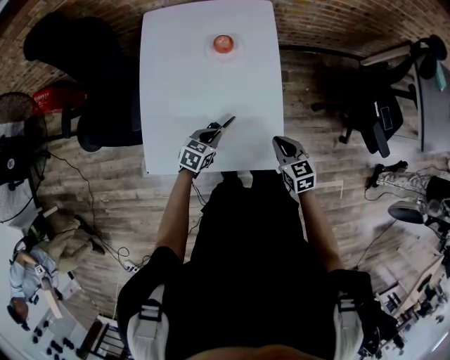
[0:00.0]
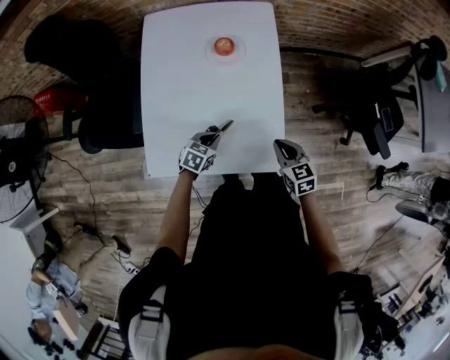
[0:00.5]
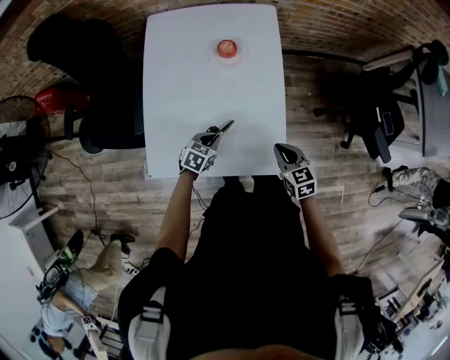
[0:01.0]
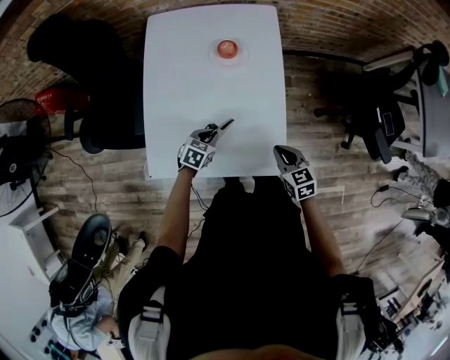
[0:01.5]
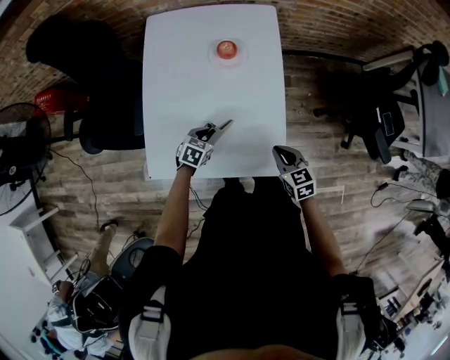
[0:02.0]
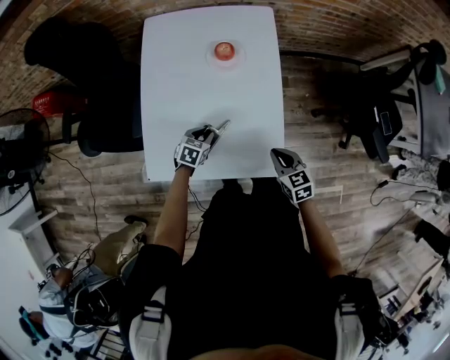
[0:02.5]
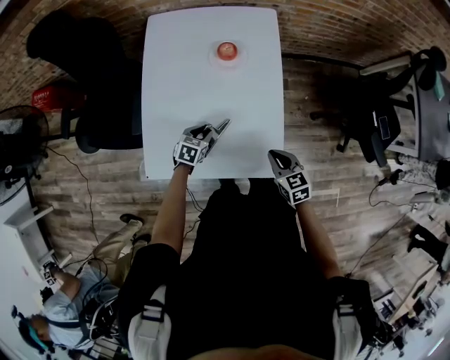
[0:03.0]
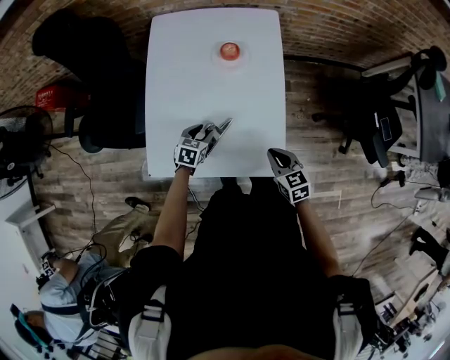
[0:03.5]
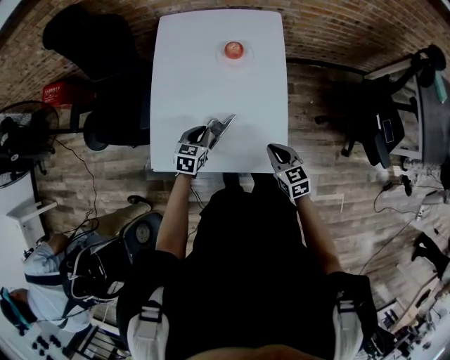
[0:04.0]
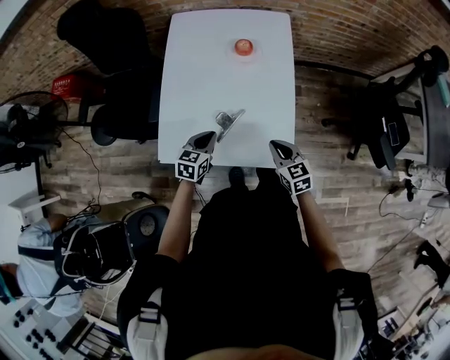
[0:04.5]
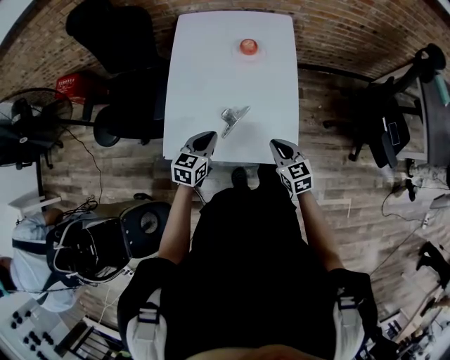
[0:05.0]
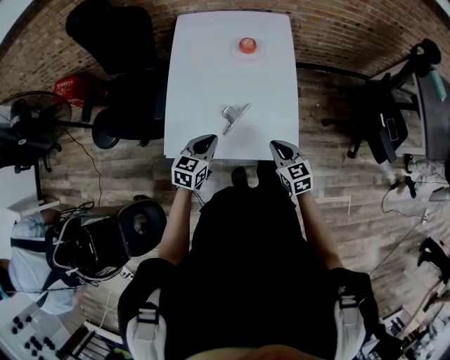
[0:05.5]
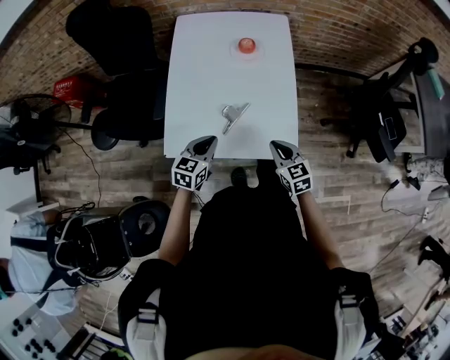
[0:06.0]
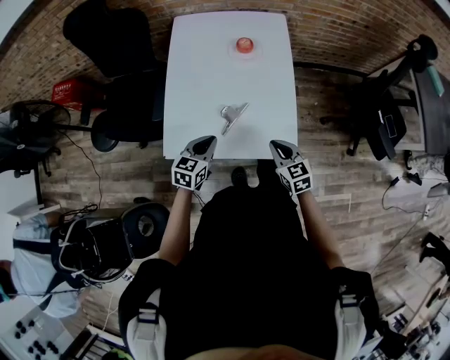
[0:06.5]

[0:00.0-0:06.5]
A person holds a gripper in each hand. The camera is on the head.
0:00.0 to 0:02.0: The left gripper moves roughly 5 cm.
0:02.0 to 0:04.5: The left gripper is displaced upward and backward by about 10 cm, swivels roughly 20 degrees, and opens, then closes again, while the right gripper ends up about 5 cm from where it was.
0:04.5 to 0:06.5: Both grippers move backward, about 5 cm.

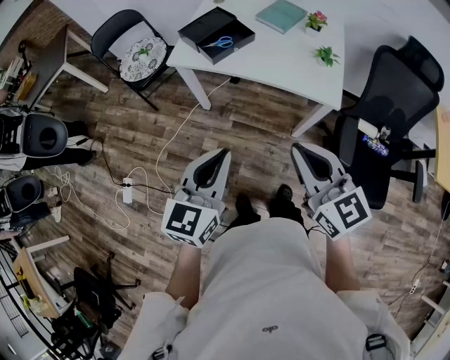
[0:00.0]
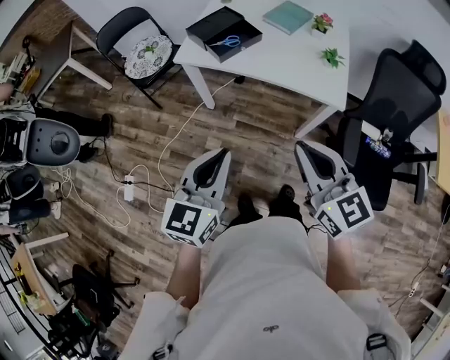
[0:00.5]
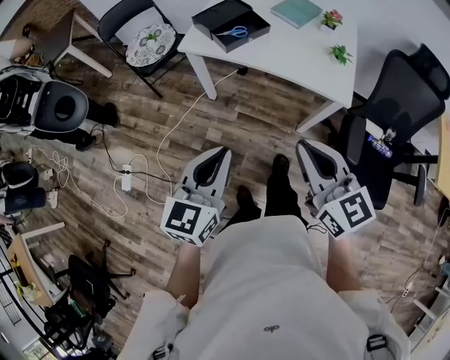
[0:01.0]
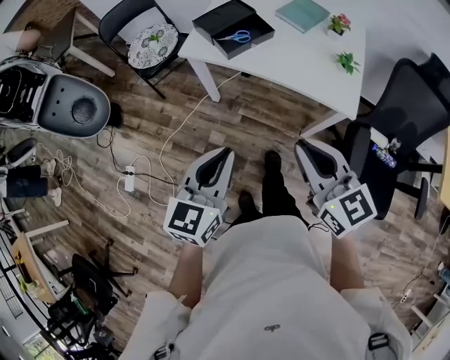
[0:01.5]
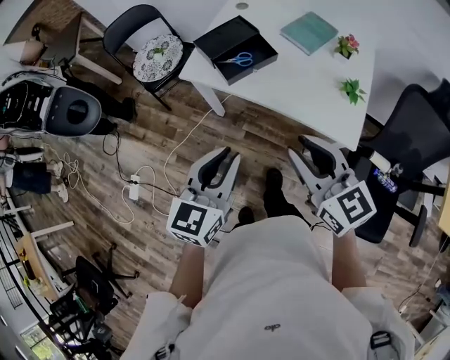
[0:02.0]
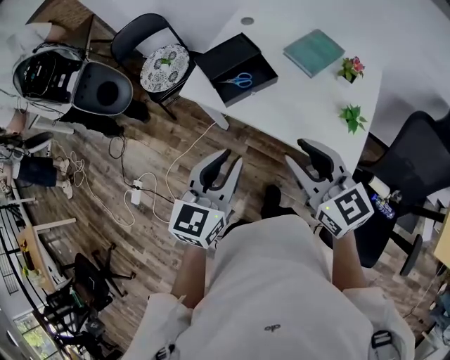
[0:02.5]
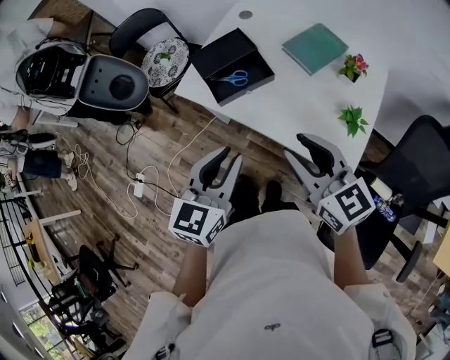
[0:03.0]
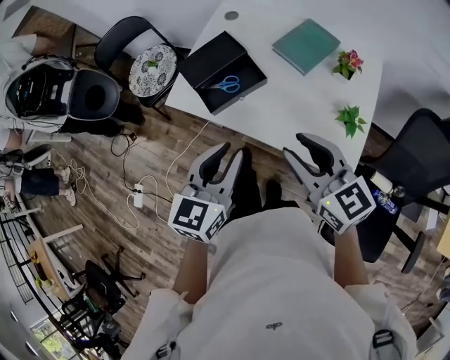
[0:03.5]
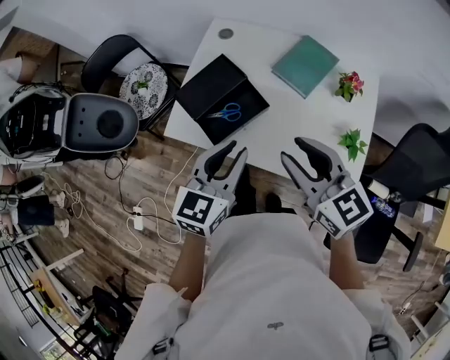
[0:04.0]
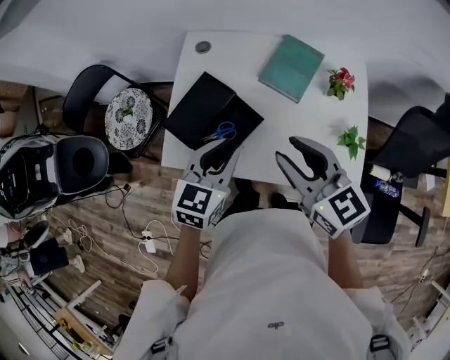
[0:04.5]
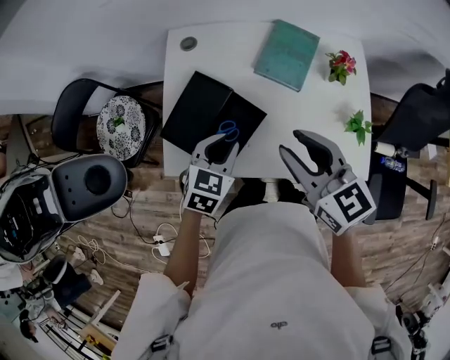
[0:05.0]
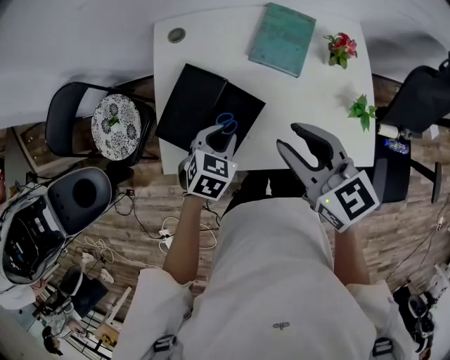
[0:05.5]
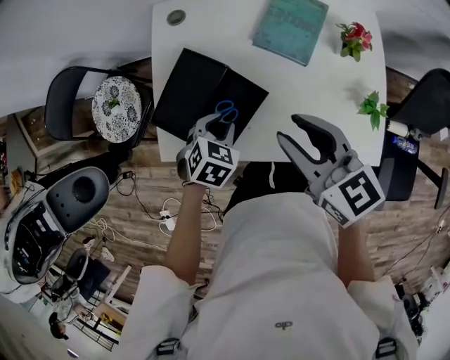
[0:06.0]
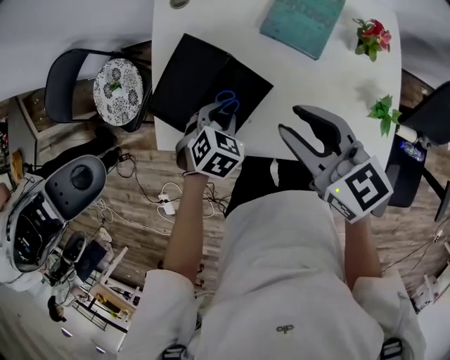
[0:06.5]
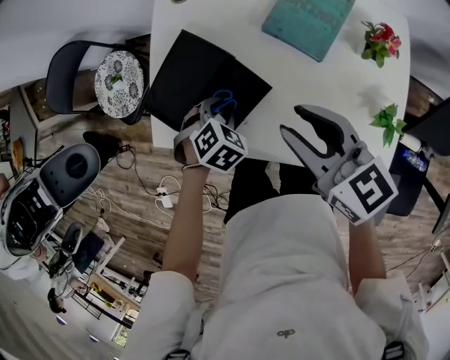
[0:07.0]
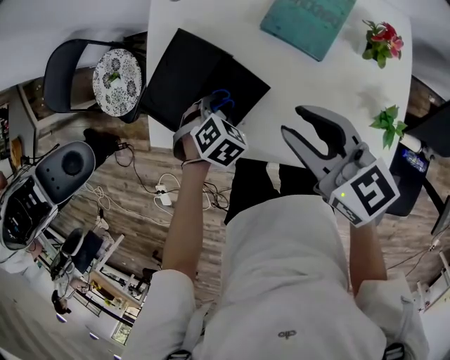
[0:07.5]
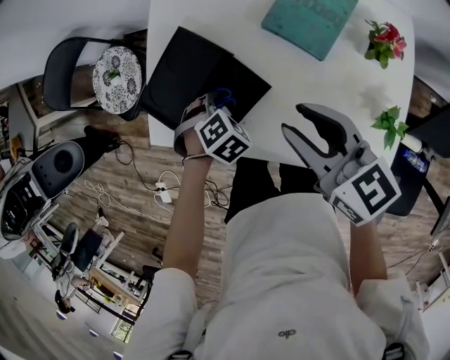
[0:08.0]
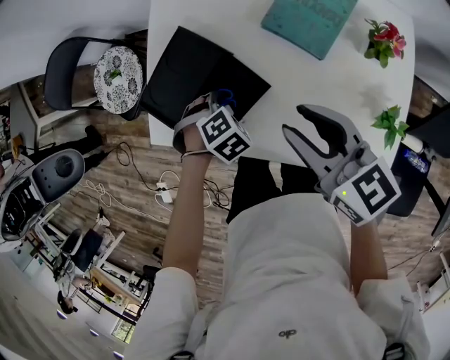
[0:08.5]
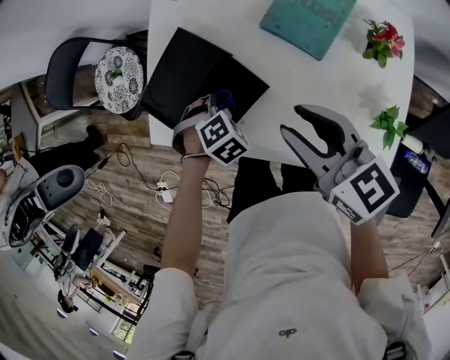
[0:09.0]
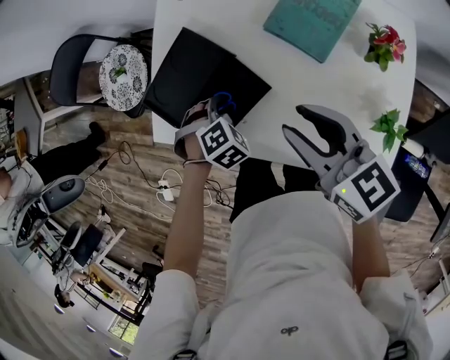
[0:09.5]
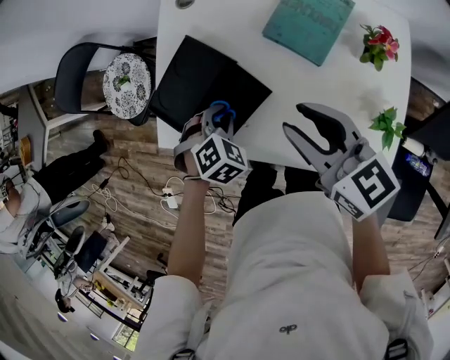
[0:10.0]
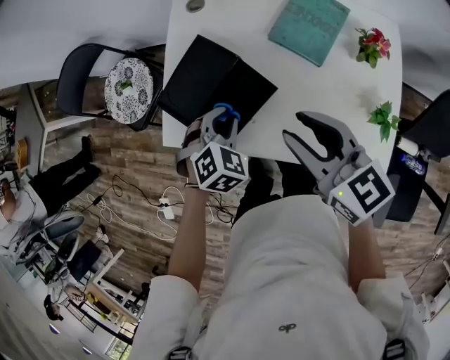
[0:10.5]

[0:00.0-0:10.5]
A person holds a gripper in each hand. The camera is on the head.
0:00.0 to 0:02.0: Both grippers move forward, roughly 15 cm. The right gripper opens its fingers.
0:02.0 to 0:04.0: The two grippers go about 25 cm forward.
0:04.0 to 0:06.5: The left gripper is displaced downward and forward by about 25 cm, and tilts its fingers about 50 degrees downward; the right gripper moves forward and downward, roughly 15 cm.
0:06.5 to 0:08.5: The left gripper moves about 5 cm.
0:08.5 to 0:10.5: The right gripper ends up roughly 5 cm from where it was; the left gripper travels upward by roughly 10 cm, and turns by roughly 20 degrees.

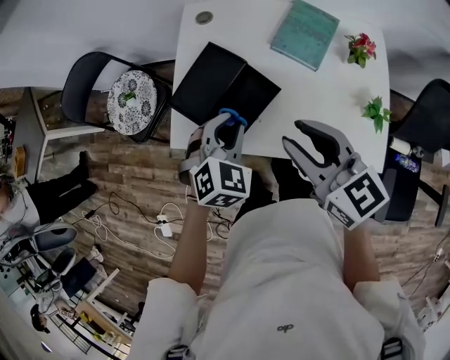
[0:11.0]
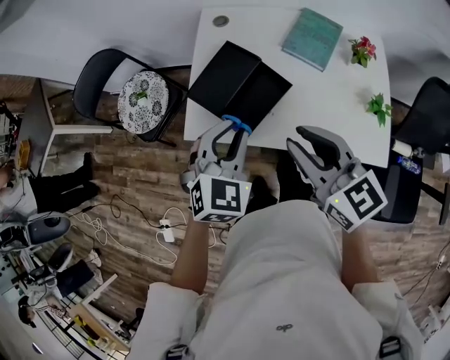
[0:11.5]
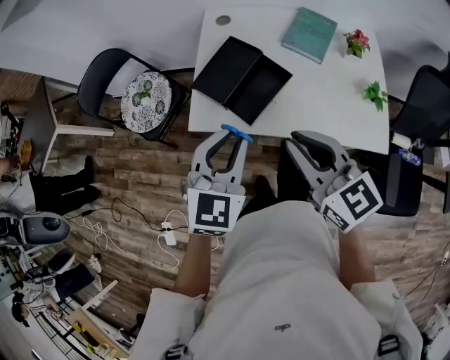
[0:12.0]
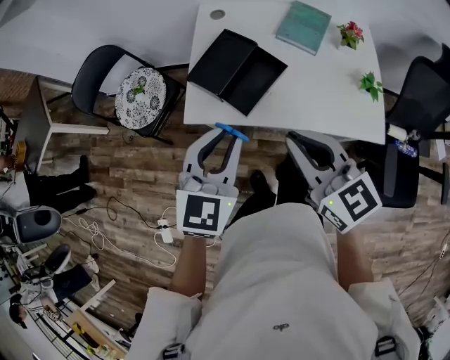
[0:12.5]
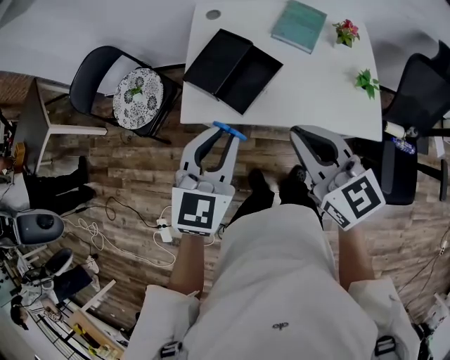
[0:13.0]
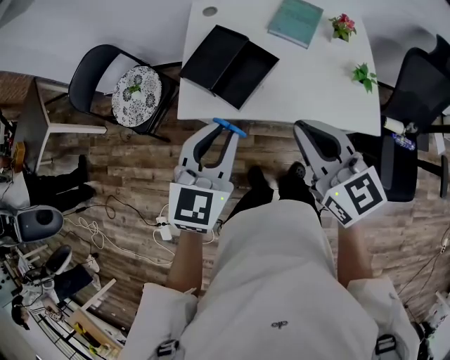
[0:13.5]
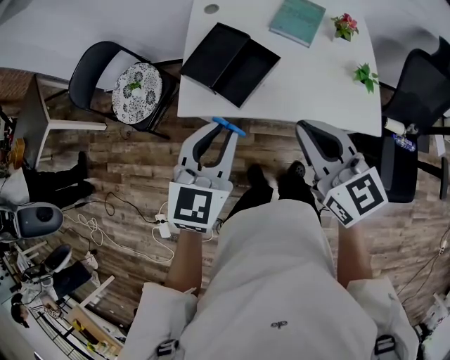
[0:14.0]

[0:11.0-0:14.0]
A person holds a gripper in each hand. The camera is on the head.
0:11.0 to 0:12.5: The right gripper travels backward and to the left by some 15 cm, and closes. Meanwhile the left gripper travels backward, upward and to the left by roughly 20 cm, and turns by approximately 30 degrees.
0:12.5 to 0:14.0: The grippers stay close to where they were, moving slightly.

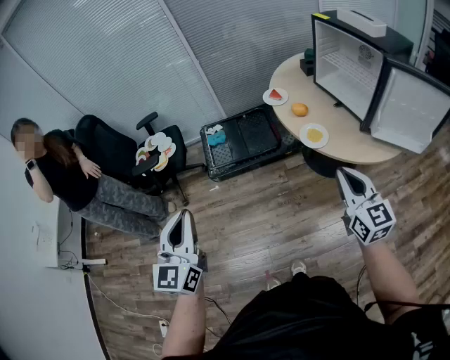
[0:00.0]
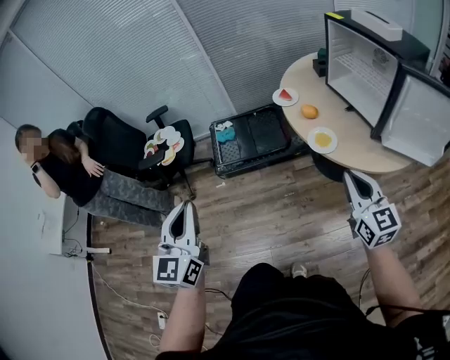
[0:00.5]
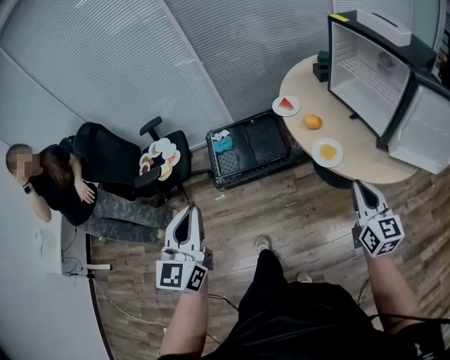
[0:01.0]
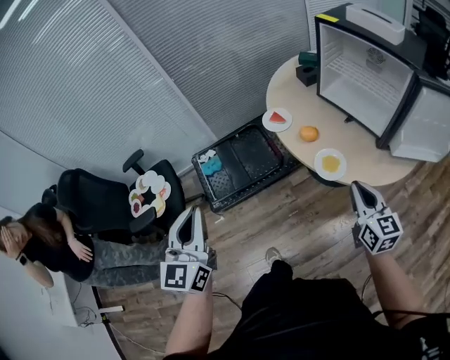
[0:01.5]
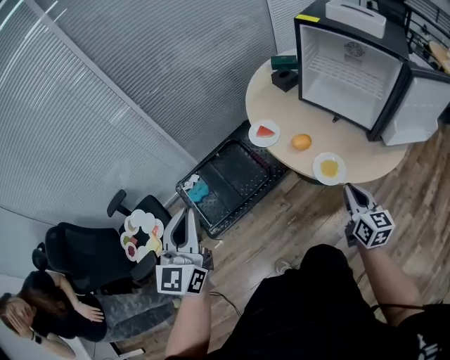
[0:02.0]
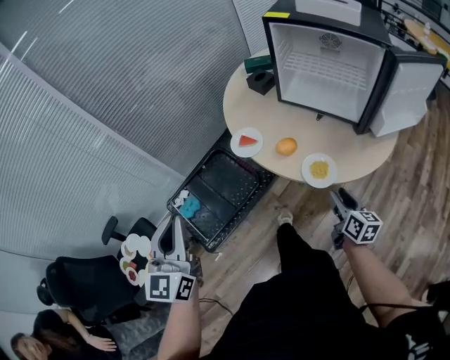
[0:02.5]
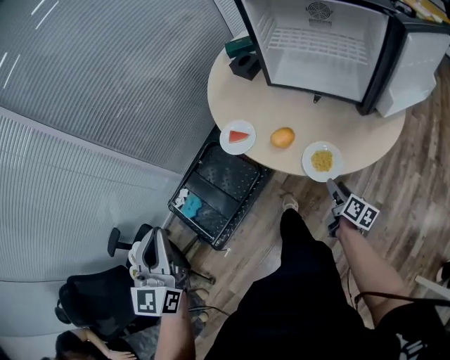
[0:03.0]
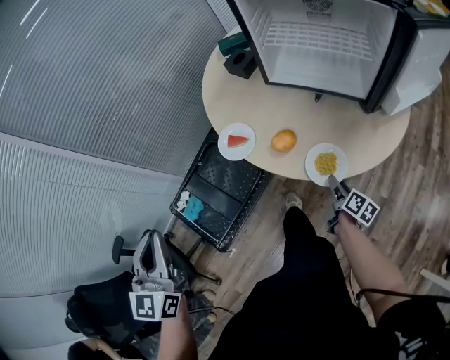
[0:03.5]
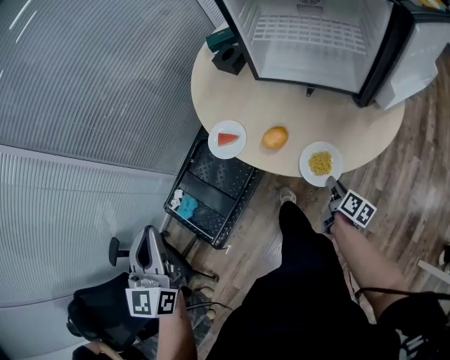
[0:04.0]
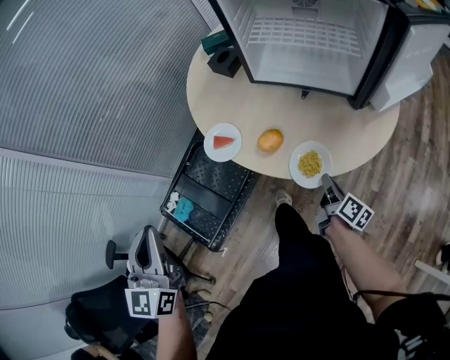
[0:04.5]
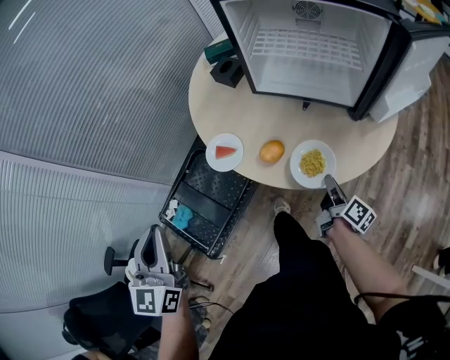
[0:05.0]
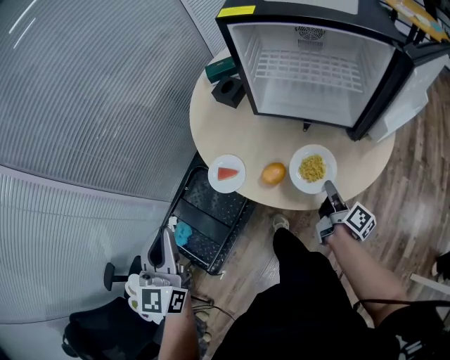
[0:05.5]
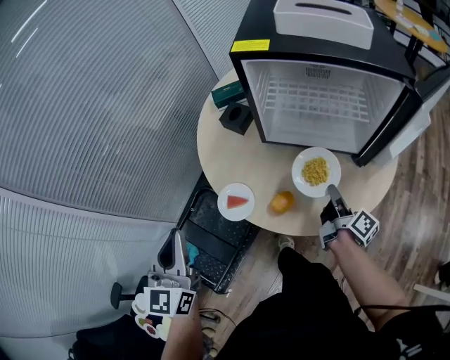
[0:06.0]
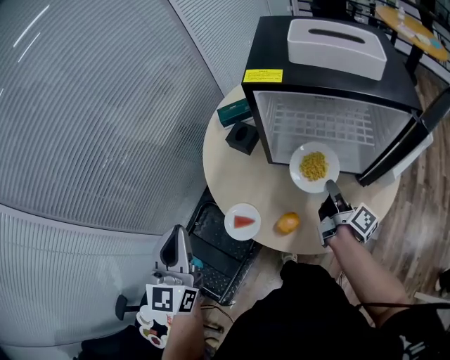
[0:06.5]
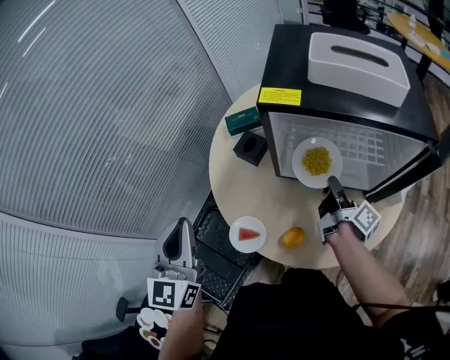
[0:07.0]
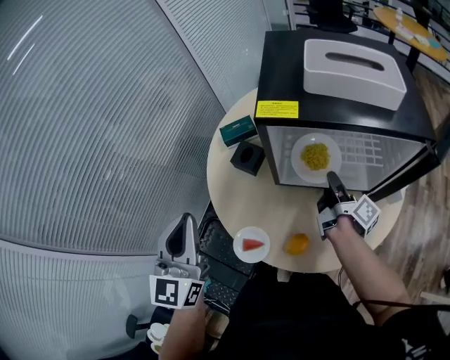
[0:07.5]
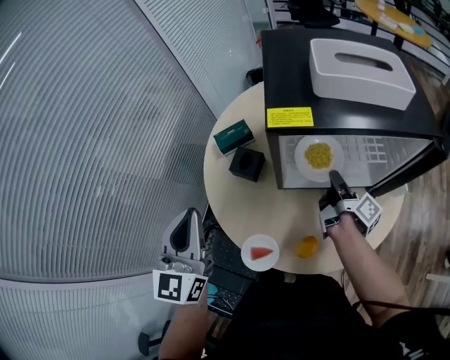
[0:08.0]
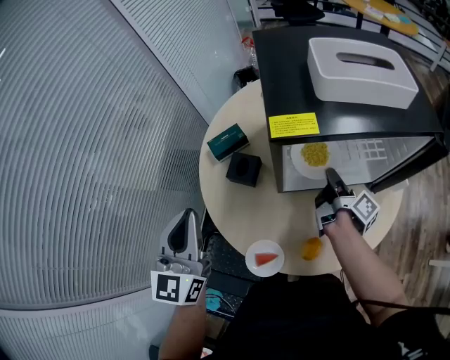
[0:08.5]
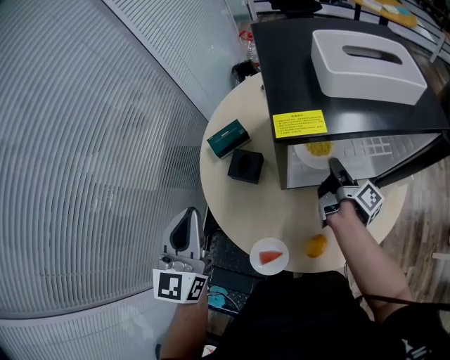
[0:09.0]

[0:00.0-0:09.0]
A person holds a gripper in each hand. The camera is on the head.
0:00.0 to 0:02.0: The left gripper shifts by approximately 40 cm, and rotates about 30 degrees; the right gripper moves roughly 25 cm, and rotates some 40 degrees.
0:02.0 to 0:04.5: The right gripper moves downward and forward, some 20 cm, rotates around the line of its fingers by some 50 degrees, clockwise from behind, and opens and closes again; the left gripper goes about 20 cm forward.
0:04.5 to 0:07.0: The right gripper shifts roughly 35 cm forward and upward, and turns by some 30 degrees. Meanwhile the left gripper moves forward, some 30 cm.
0:07.0 to 0:09.0: The right gripper moves forward, about 5 cm, and swivels roughly 20 degrees; the left gripper is displaced forward by about 15 cm.
